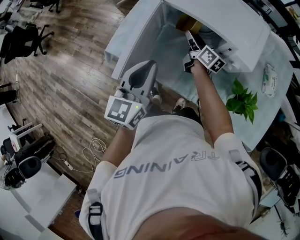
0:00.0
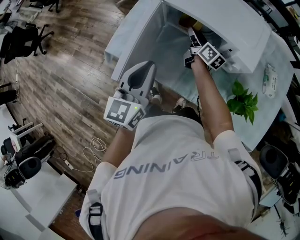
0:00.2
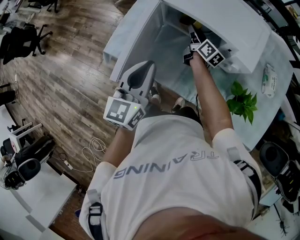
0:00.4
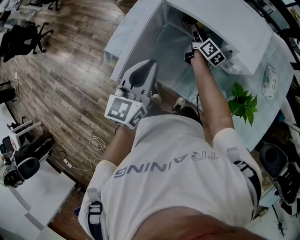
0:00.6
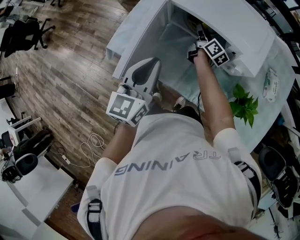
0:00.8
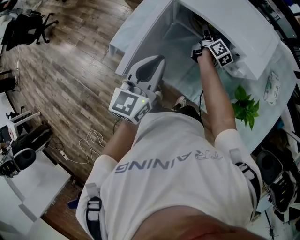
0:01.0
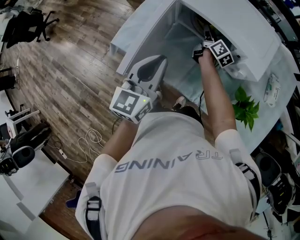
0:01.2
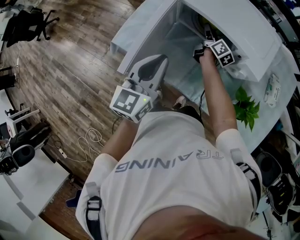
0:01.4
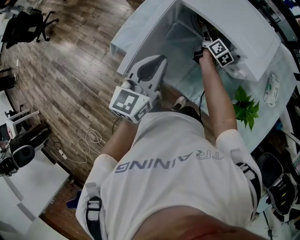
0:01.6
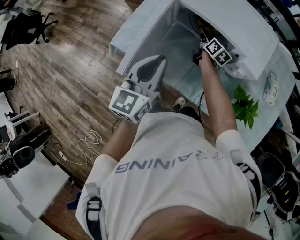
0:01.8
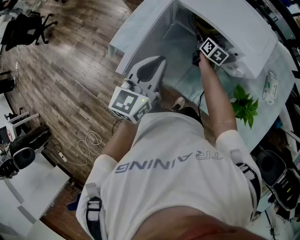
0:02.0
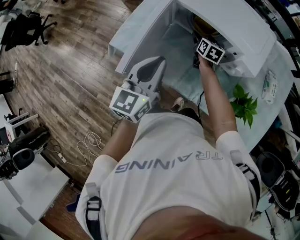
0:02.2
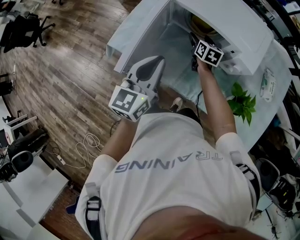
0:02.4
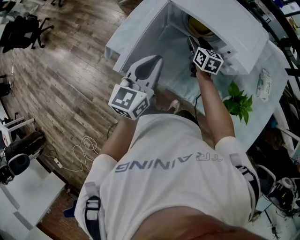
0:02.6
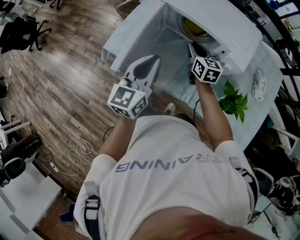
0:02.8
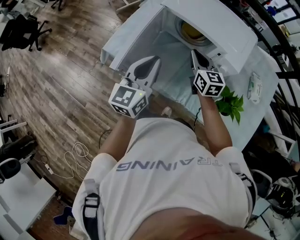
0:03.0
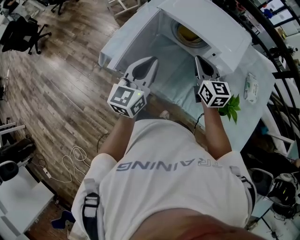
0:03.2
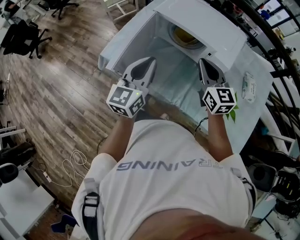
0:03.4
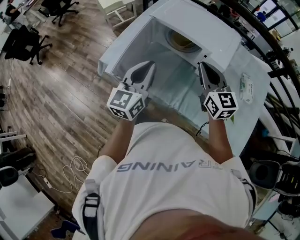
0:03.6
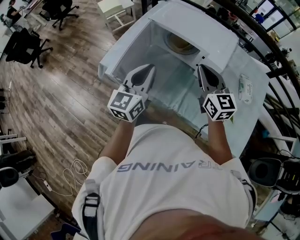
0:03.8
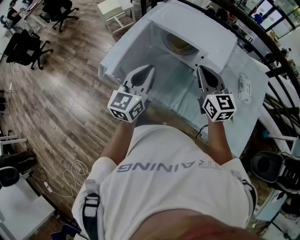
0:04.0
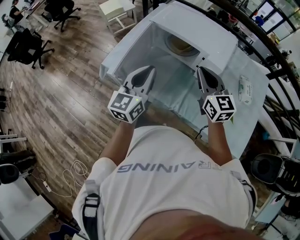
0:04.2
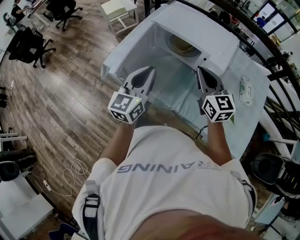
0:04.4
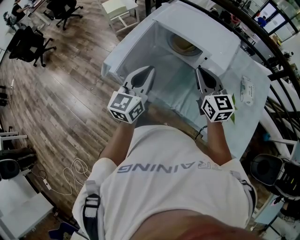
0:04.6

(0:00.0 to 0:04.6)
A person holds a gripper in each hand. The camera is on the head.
0:00.0 - 0:01.6: The right gripper travels forward by some 5 cm.
0:01.6 - 0:03.0: The right gripper travels backward and upward by roughly 20 cm, rolls counterclockwise, seen from behind, by about 40 degrees, and closes up.
0:03.0 - 0:04.6: The right gripper travels backward and upward by roughly 15 cm. The left gripper goes some 5 cm backward.

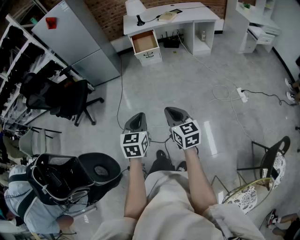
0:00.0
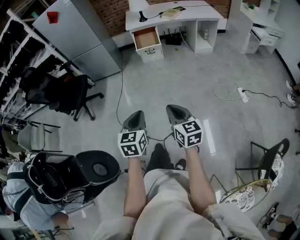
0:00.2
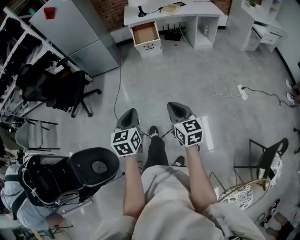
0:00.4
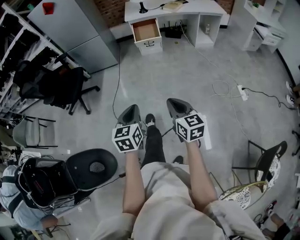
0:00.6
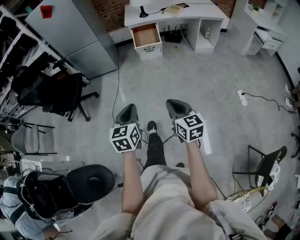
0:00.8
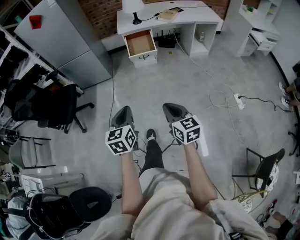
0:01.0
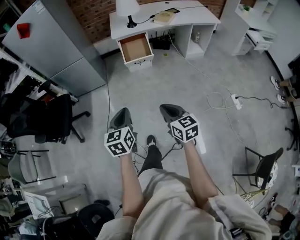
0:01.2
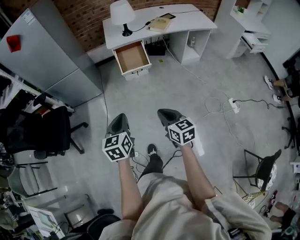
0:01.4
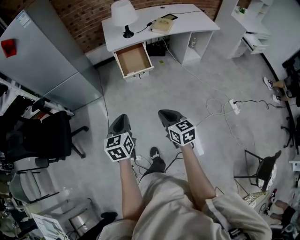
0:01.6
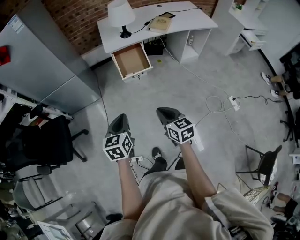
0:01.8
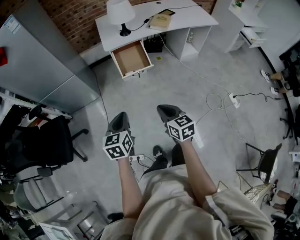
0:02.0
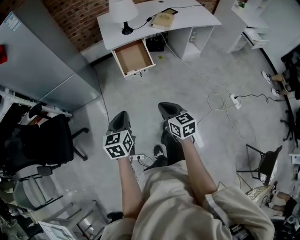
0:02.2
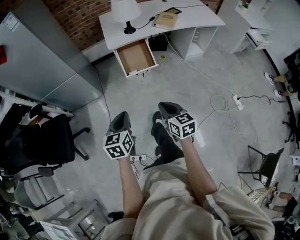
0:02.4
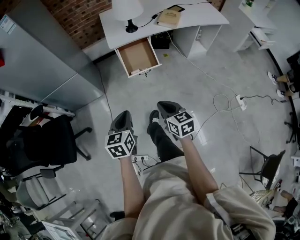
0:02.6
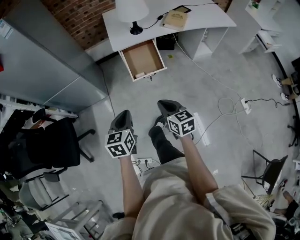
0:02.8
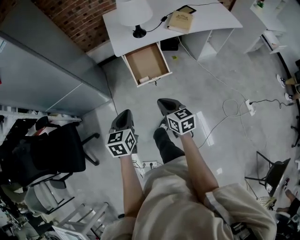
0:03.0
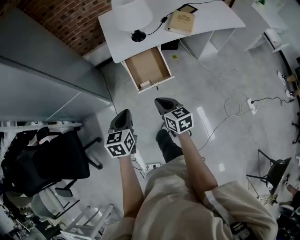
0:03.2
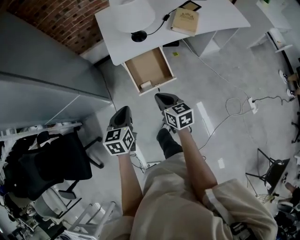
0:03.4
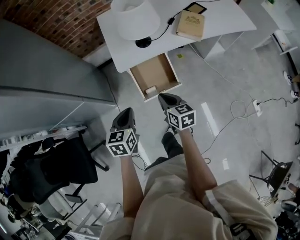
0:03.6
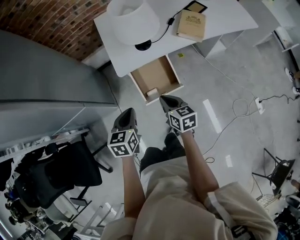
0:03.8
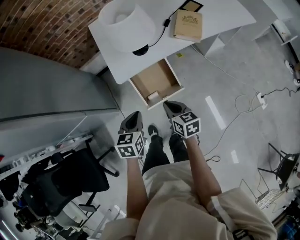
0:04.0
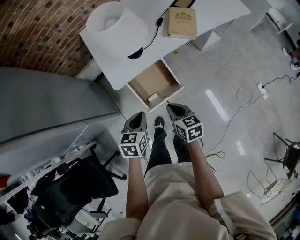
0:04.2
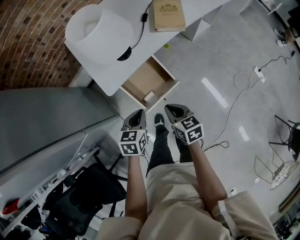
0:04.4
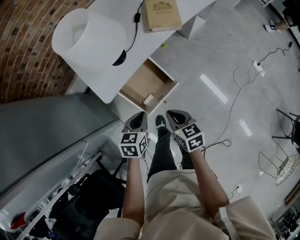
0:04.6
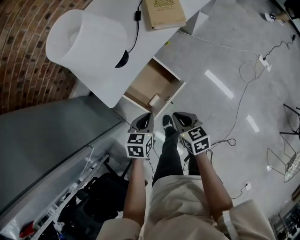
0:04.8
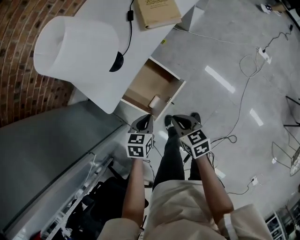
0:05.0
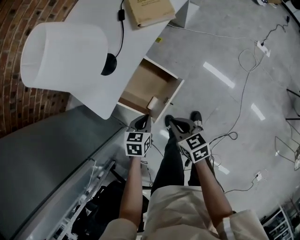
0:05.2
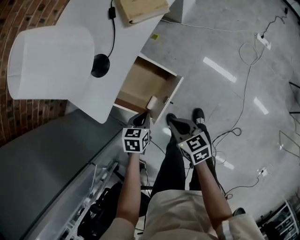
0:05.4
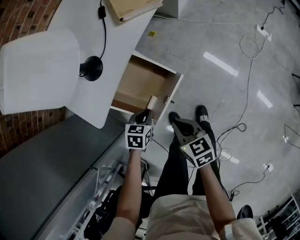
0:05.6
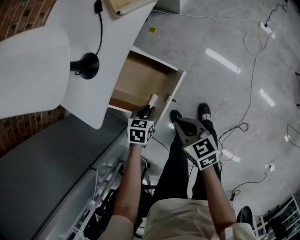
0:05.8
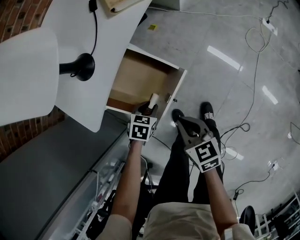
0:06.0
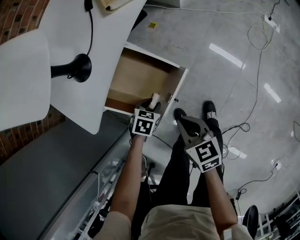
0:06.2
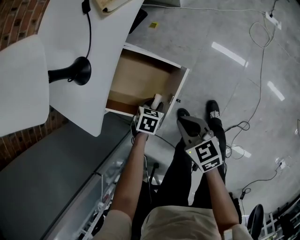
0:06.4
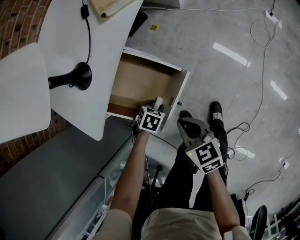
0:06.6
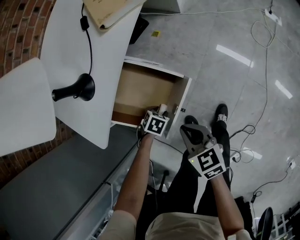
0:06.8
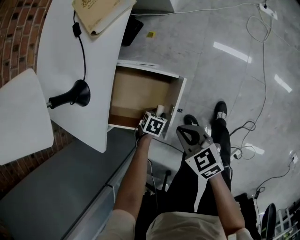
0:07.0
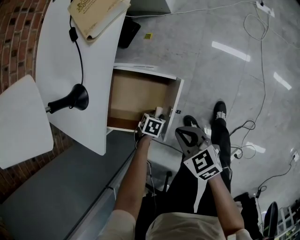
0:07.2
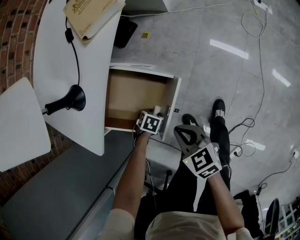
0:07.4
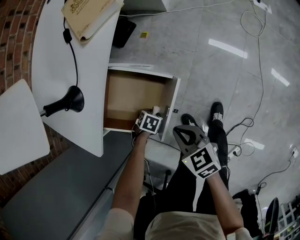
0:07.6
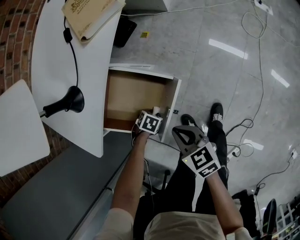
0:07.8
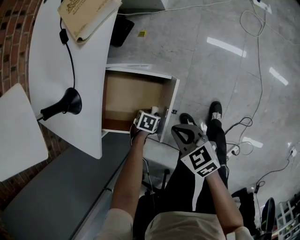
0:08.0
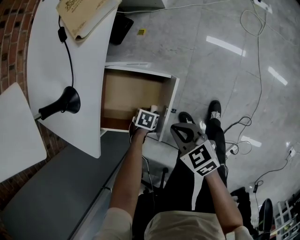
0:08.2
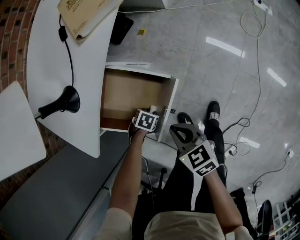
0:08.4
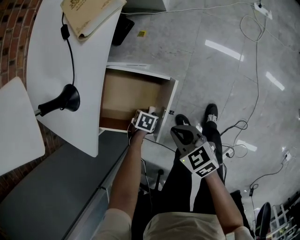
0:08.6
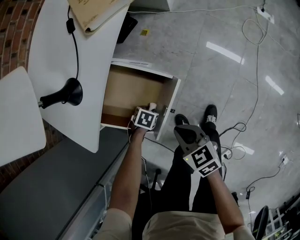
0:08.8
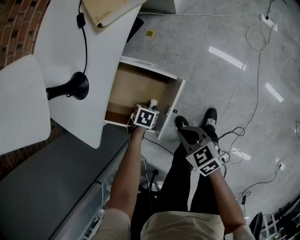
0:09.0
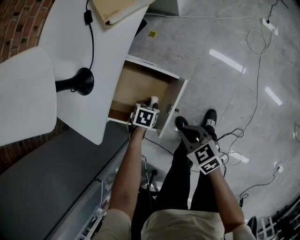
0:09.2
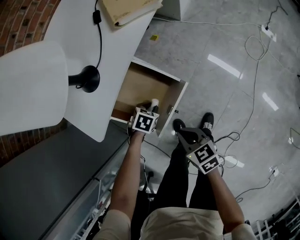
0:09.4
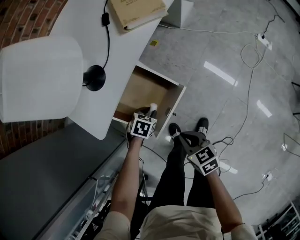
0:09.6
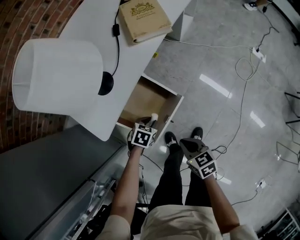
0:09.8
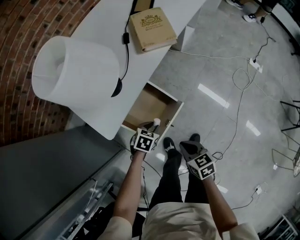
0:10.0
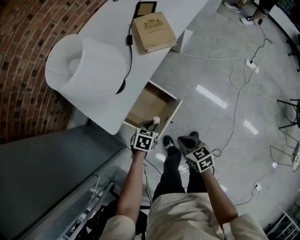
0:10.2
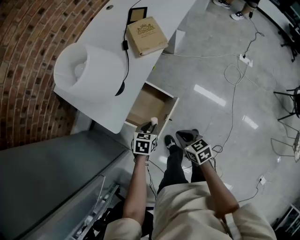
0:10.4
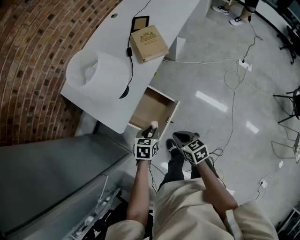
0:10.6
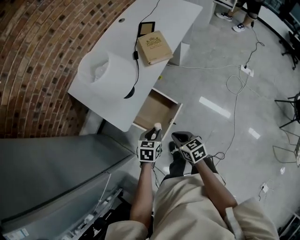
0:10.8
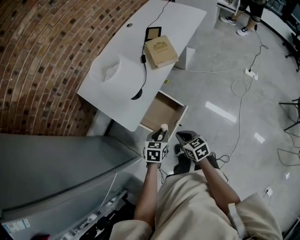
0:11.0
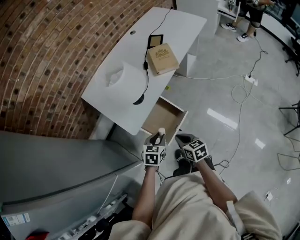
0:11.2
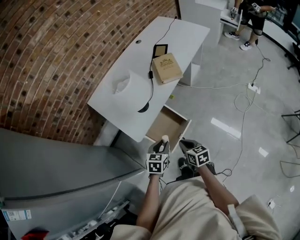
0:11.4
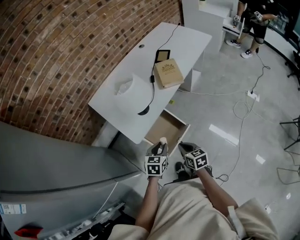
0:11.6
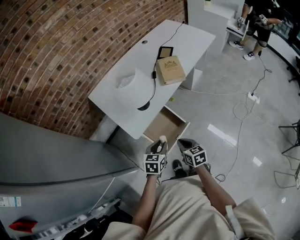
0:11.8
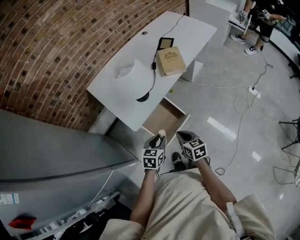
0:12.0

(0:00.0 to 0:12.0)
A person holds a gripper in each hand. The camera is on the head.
0:00.0 - 0:01.6: The pair of grippers is taken forward, roughly 50 cm.
0:01.6 - 0:03.0: Both grippers travel together forward, approximately 25 cm.
0:03.0 - 0:04.4: Both grippers move forward, some 25 cm. The right gripper turns by about 20 degrees. Meanwhile the left gripper changes its angle by roughly 30 degrees.
0:04.4 - 0:06.0: The left gripper shifts some 30 cm downward, rotates approximately 40 degrees, and opens; the right gripper travels downward by roughly 15 cm.
0:06.0 - 0:07.6: The left gripper is displaced downward by approximately 15 cm, and swivels about 30 degrees.
0:07.6 - 0:09.0: The left gripper shifts by roughly 5 cm.
0:09.0 - 0:10.4: The left gripper goes roughly 30 cm upward, and turns by some 30 degrees; the right gripper moves upward, approximately 15 cm.
0:10.4 - 0:12.0: The left gripper goes roughly 15 cm upward and backward, and rotates some 20 degrees, while the right gripper moves upward, approximately 10 cm.

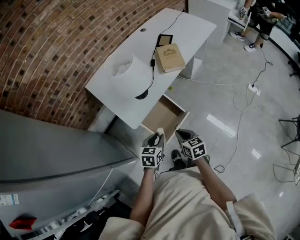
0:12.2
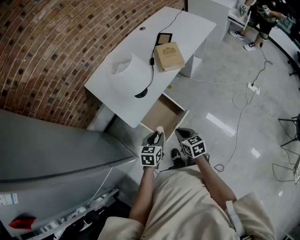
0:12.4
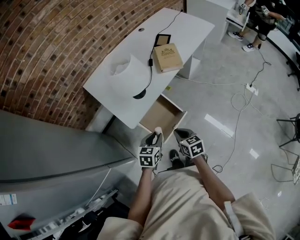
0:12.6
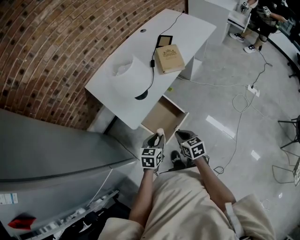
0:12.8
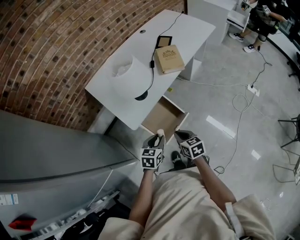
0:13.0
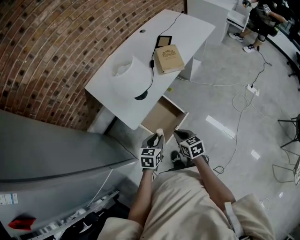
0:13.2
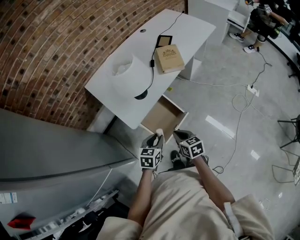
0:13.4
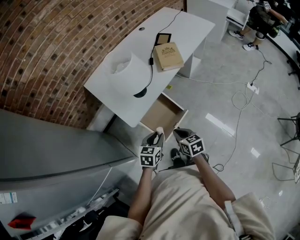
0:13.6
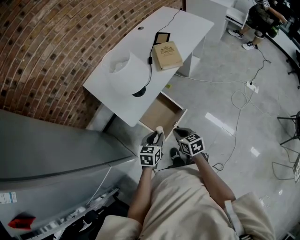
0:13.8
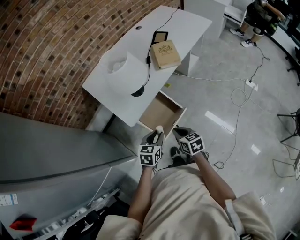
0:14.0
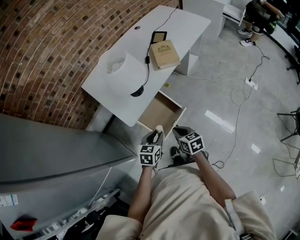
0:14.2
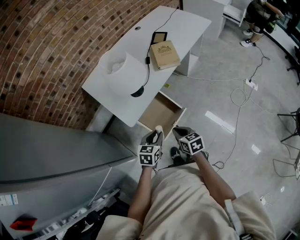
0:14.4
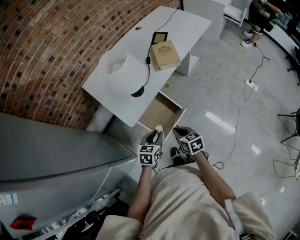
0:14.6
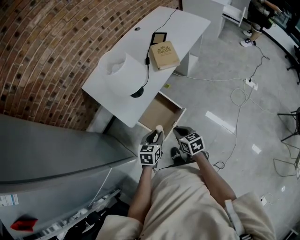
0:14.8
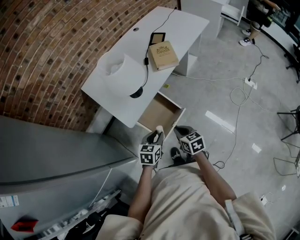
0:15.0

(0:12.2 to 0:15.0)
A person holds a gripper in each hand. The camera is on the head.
0:12.2 - 0:13.6: Neither gripper changes place.
0:13.6 - 0:15.0: The grippers make only small movements.

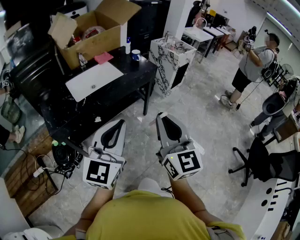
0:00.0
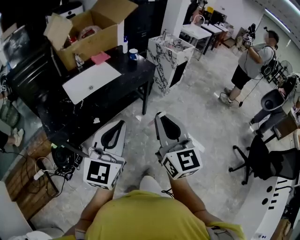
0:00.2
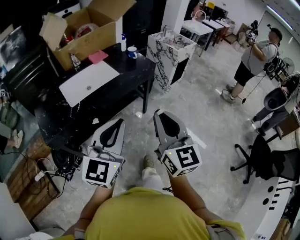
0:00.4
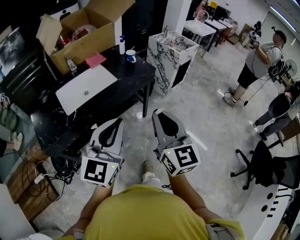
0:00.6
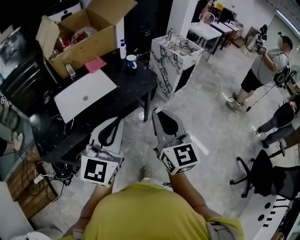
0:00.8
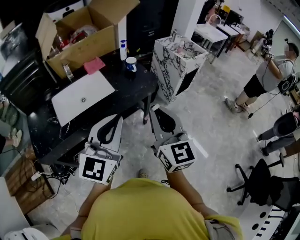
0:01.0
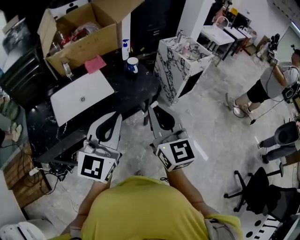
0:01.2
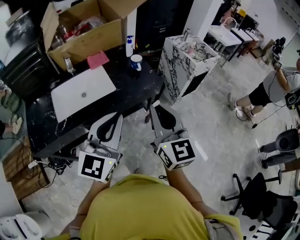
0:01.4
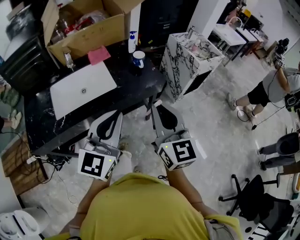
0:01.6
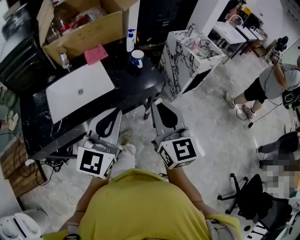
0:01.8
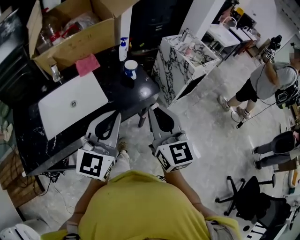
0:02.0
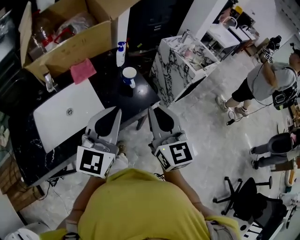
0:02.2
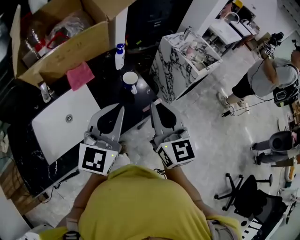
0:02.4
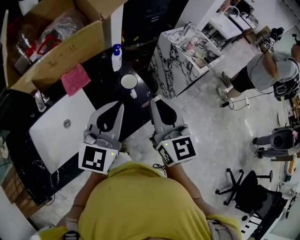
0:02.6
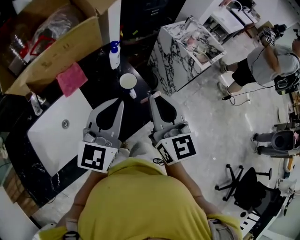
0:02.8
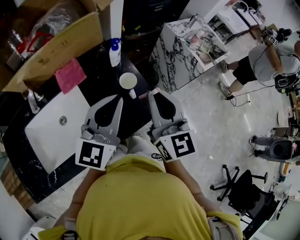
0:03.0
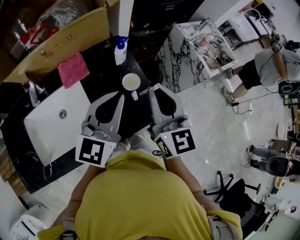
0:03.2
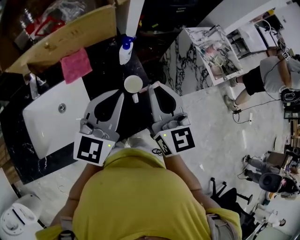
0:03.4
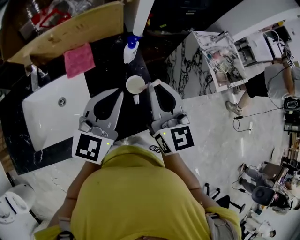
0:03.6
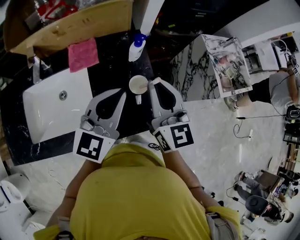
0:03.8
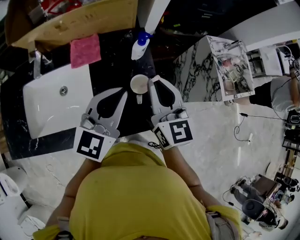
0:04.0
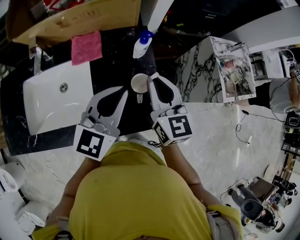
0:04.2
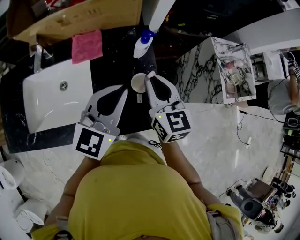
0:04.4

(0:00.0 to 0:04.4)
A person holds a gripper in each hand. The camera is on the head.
0:00.0 - 0:01.4: The grippers both shift forward by roughly 35 cm.
0:01.4 - 0:03.0: Both grippers travel together forward, about 40 cm.
0:03.0 - 0:04.4: The left gripper travels forward by about 5 cm, while the right gripper shifts approximately 15 cm forward and downward, and changes its angle by roughly 30 degrees.
